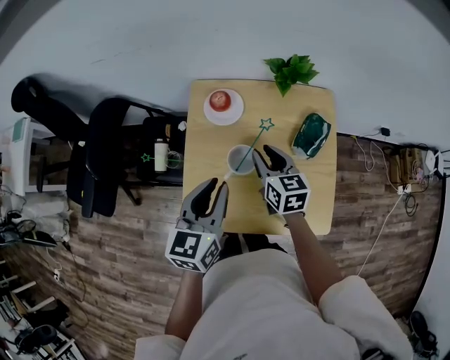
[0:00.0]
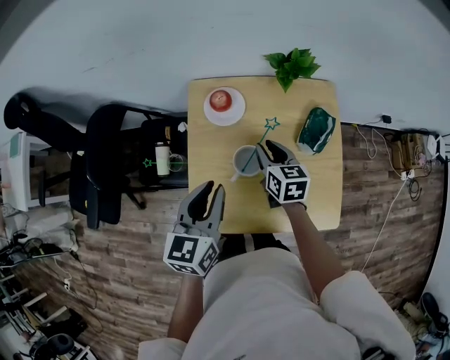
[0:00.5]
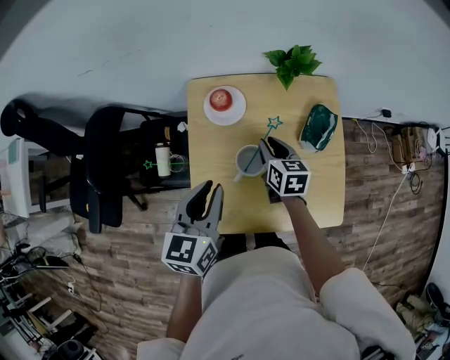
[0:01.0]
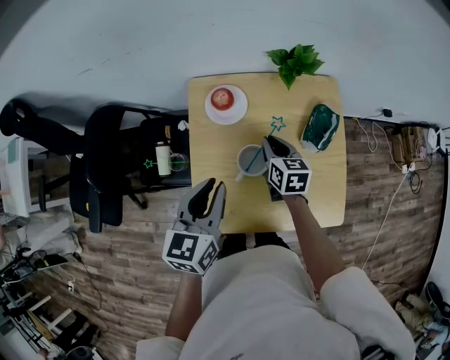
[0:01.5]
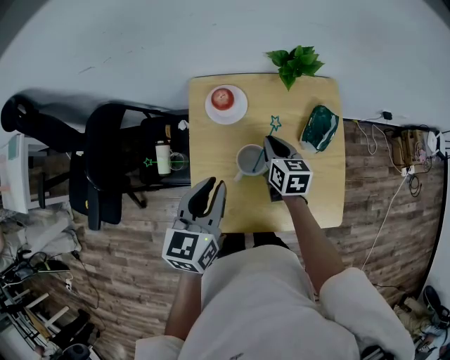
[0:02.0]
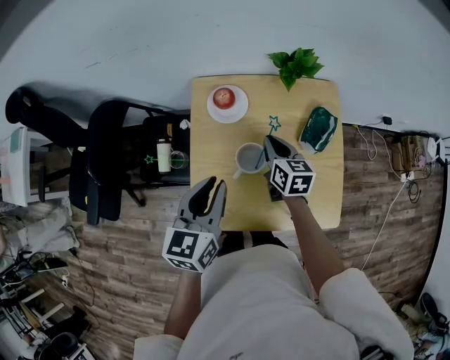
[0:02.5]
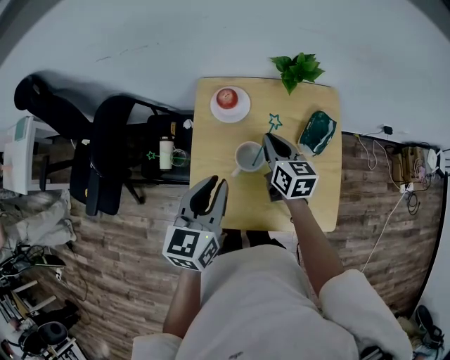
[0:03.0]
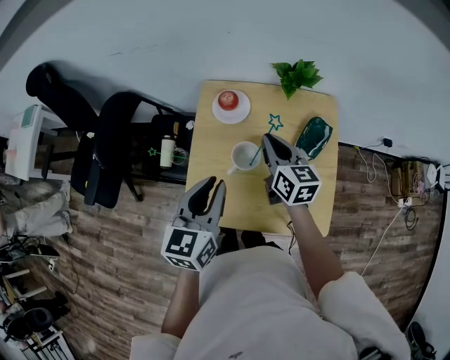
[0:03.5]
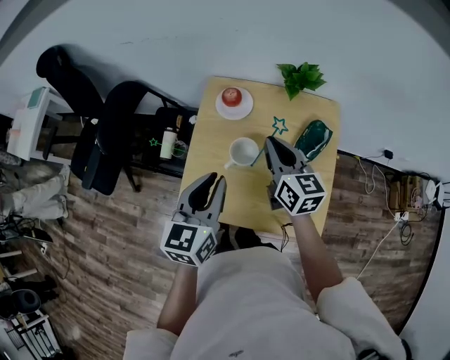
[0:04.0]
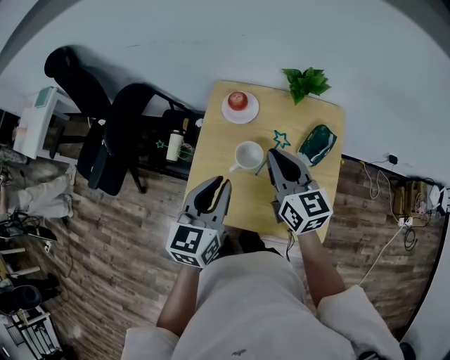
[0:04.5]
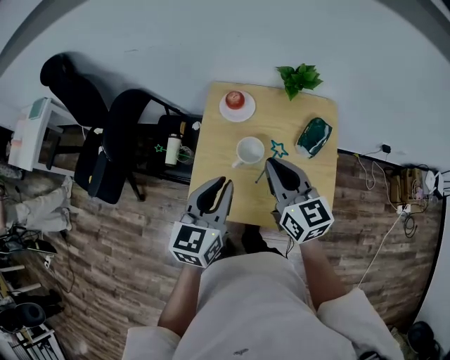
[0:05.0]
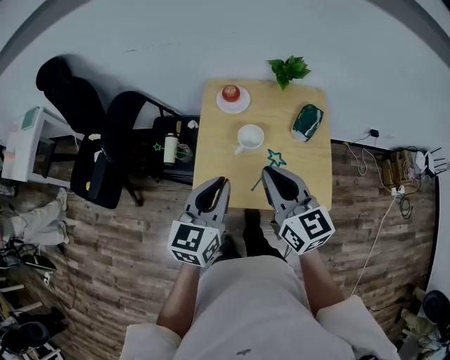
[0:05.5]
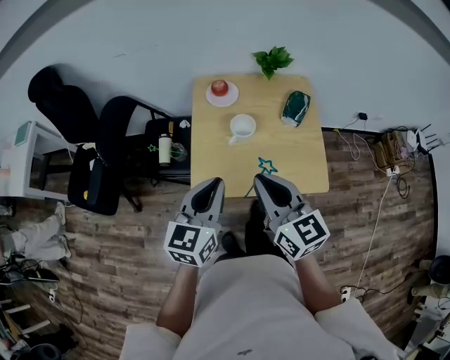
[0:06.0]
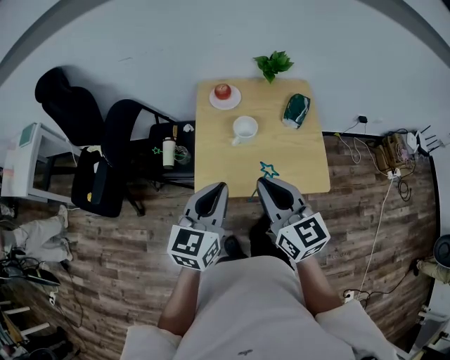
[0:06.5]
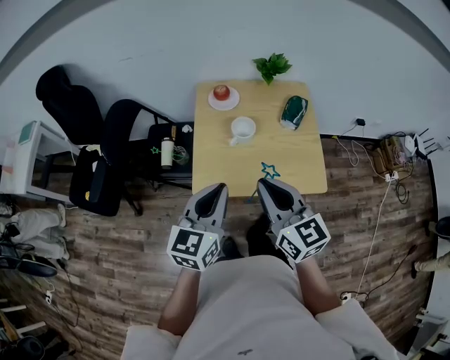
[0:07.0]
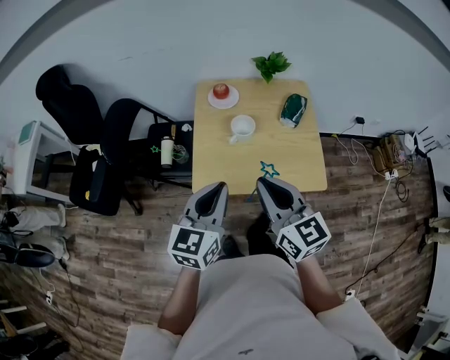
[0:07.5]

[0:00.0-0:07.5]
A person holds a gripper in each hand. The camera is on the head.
0:00.0 to 0:02.0: The left gripper changes place by some 5 cm; the right gripper goes some 5 cm downward, and closes up.
0:02.0 to 0:04.0: The right gripper moves upward and backward, approximately 15 cm, and changes its angle by roughly 30 degrees; the left gripper goes roughly 10 cm backward.
0:04.0 to 0:05.5: The right gripper moves backward, upward and to the left, approximately 20 cm. The left gripper travels backward and to the left by roughly 10 cm.
0:05.5 to 0:07.5: The two grippers go about 10 cm backward.

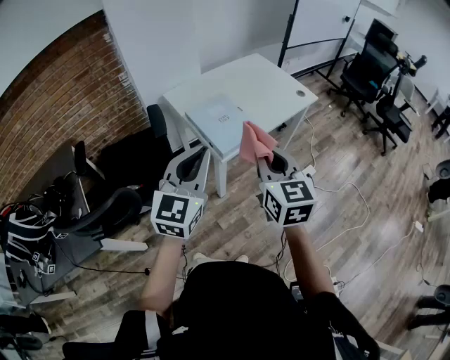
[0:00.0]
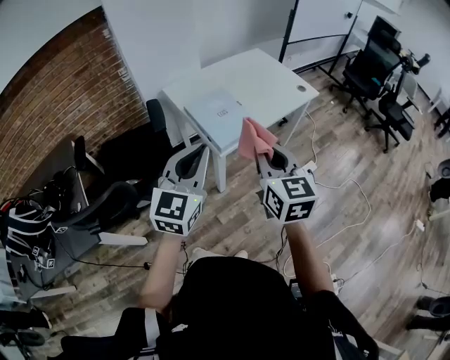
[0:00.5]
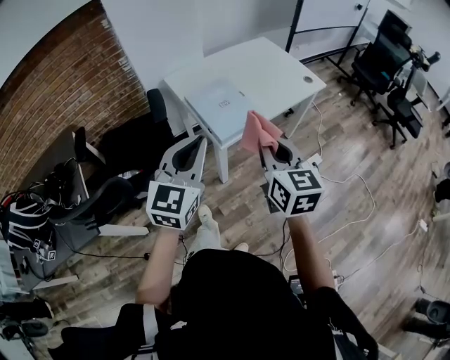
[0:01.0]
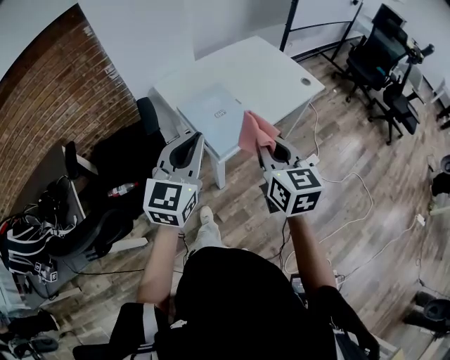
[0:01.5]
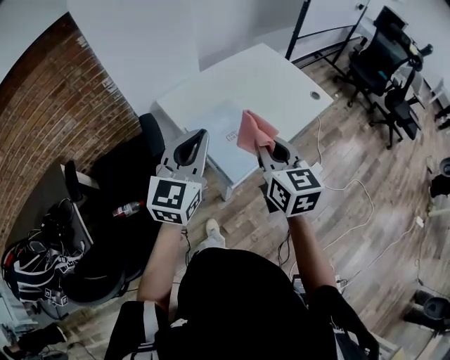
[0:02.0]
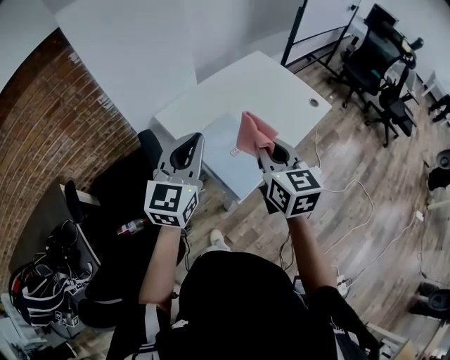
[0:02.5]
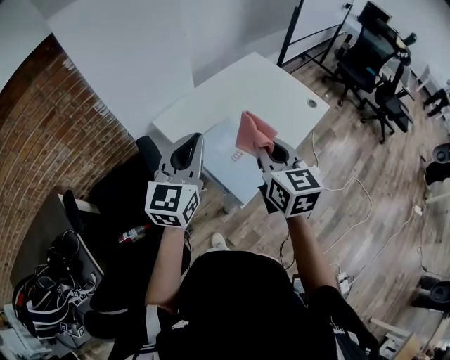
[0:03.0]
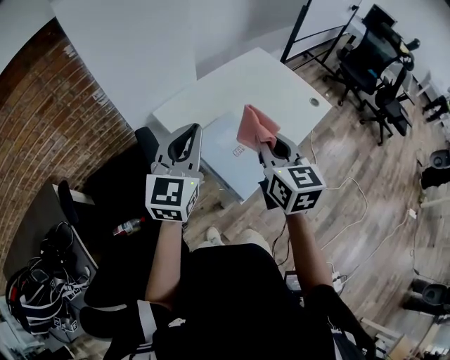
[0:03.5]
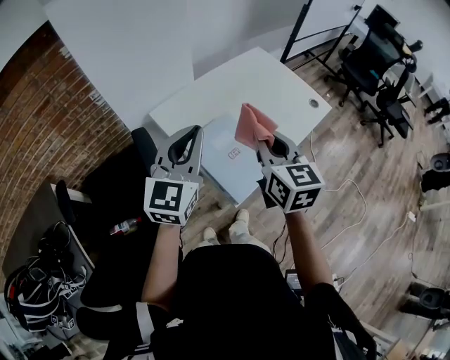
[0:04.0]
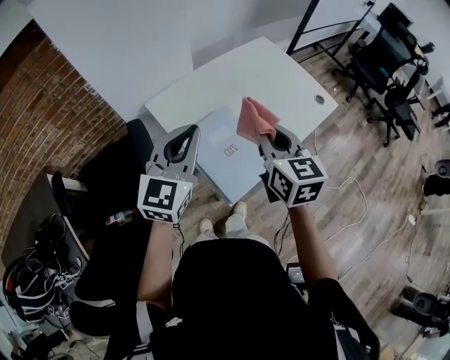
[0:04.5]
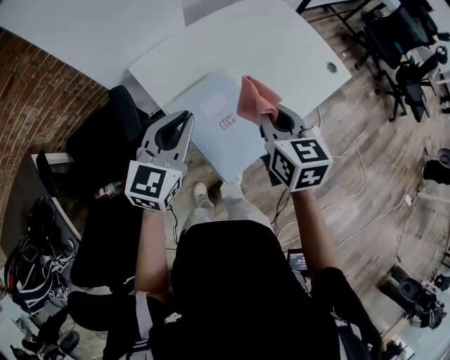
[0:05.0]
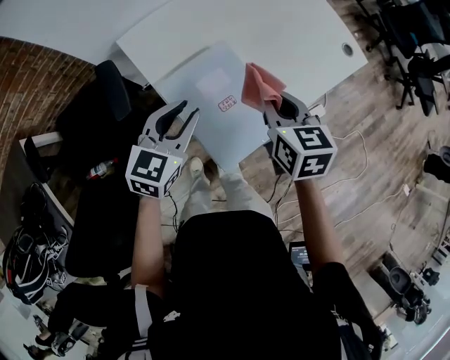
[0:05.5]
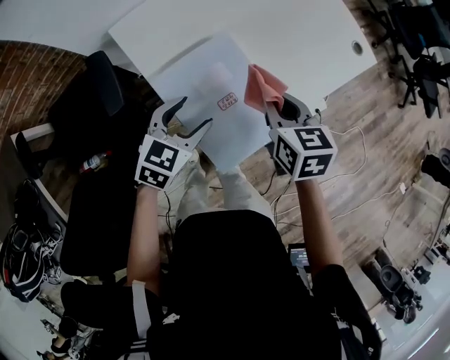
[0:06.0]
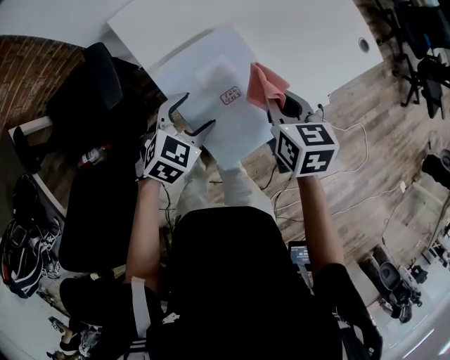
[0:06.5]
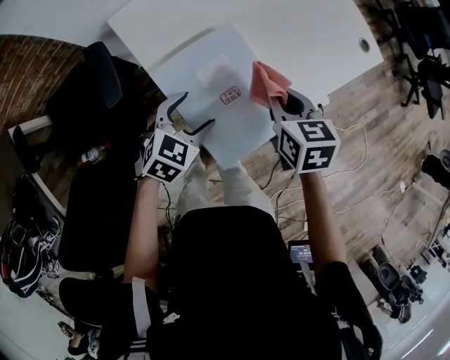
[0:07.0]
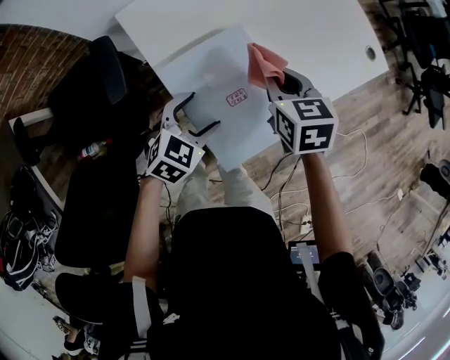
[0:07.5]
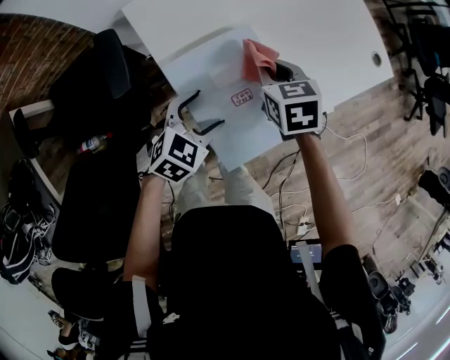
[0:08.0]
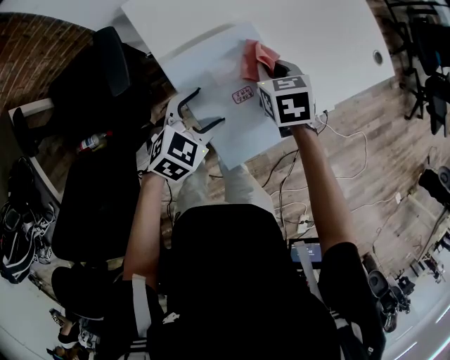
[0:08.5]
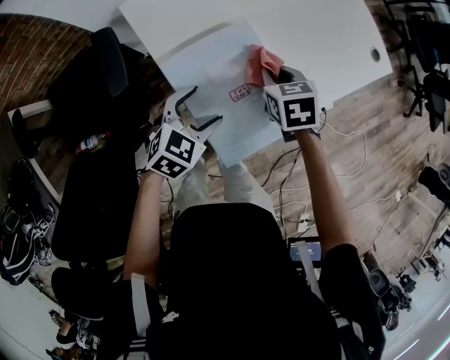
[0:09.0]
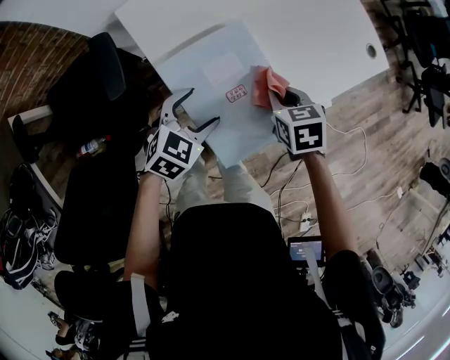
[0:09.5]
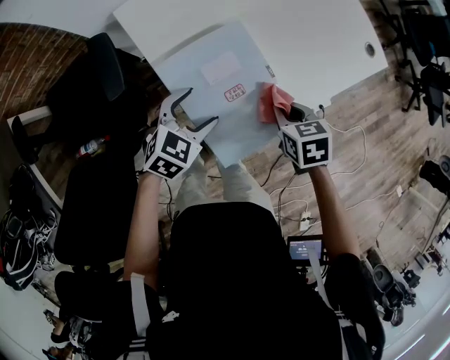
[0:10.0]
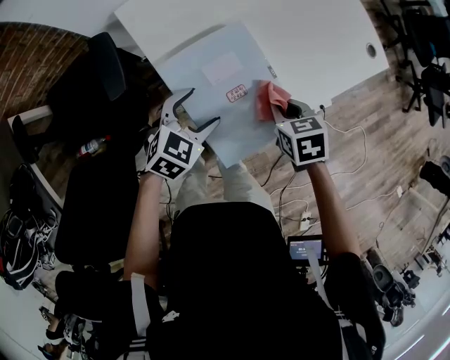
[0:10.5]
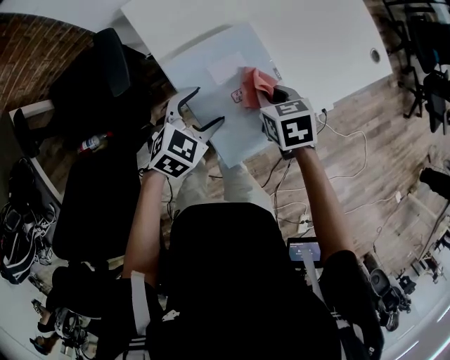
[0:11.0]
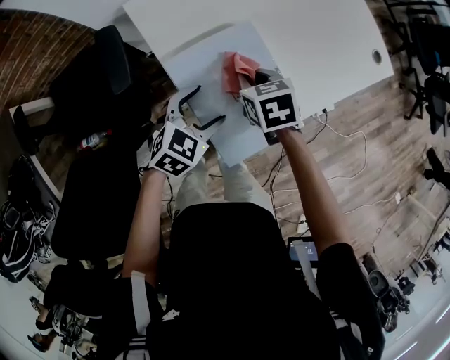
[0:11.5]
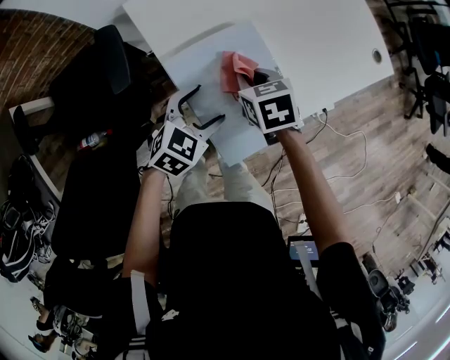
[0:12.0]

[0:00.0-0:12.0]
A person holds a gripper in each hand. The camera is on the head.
0:00.0 to 0:02.0: Both grippers travel together forward, roughly 20 cm.
0:02.0 to 0:04.0: Both grippers travel together forward, some 10 cm.
0:04.0 to 0:06.0: Both grippers travel together downward, roughly 25 cm. The left gripper angles its fingers downward, by about 40 degrees, and opens its fingers. Meanwhile the right gripper rotates some 30 degrees.
0:06.0 to 0:08.0: The left gripper moves downward, about 5 cm, while the right gripper moves downward, forward and to the left, some 10 cm.
0:08.0 to 0:10.0: The right gripper is displaced to the right and backward by roughly 15 cm.
0:10.0 to 0:12.0: The right gripper is displaced to the left and forward by about 15 cm.

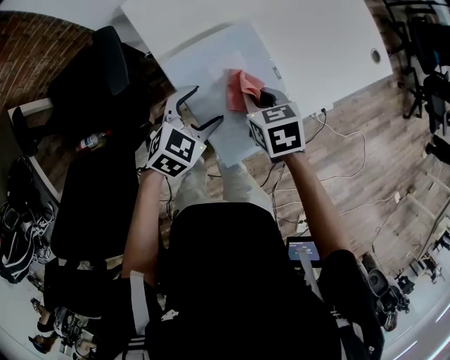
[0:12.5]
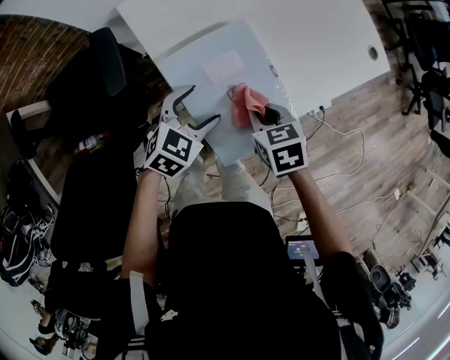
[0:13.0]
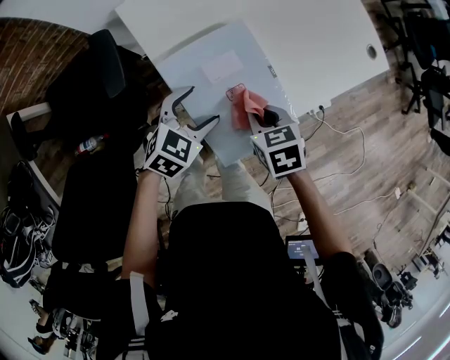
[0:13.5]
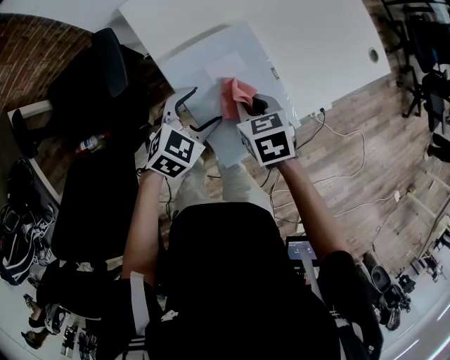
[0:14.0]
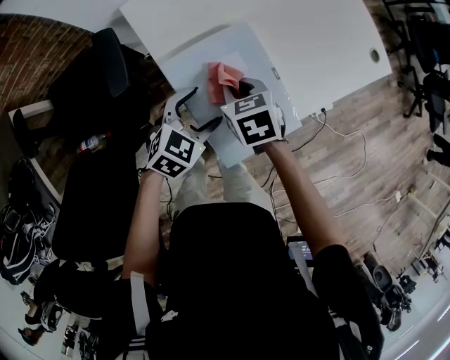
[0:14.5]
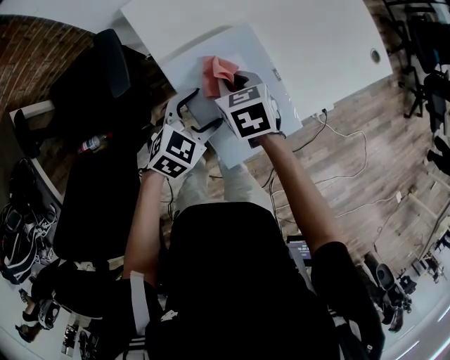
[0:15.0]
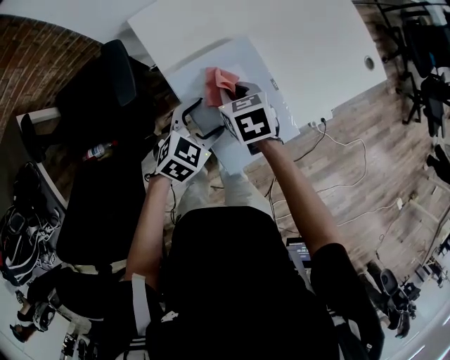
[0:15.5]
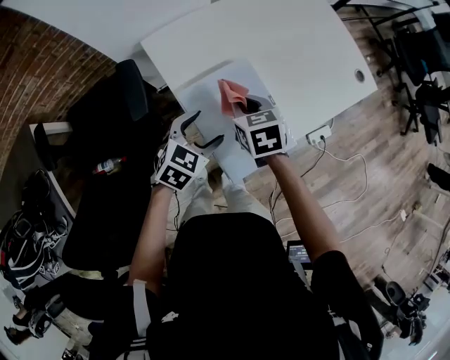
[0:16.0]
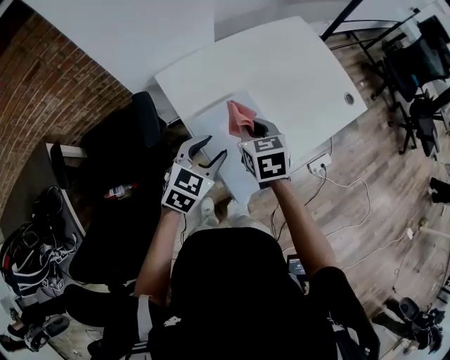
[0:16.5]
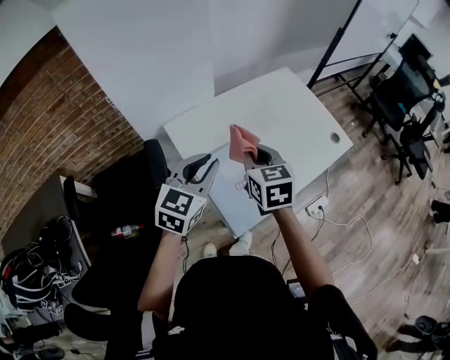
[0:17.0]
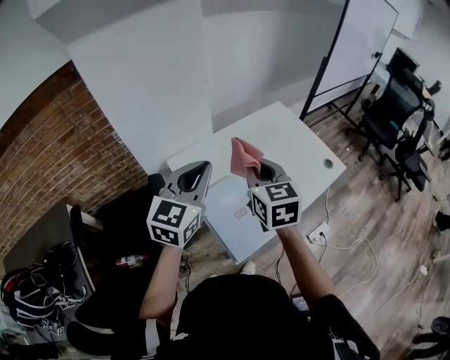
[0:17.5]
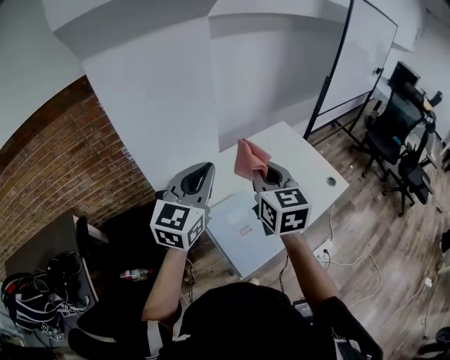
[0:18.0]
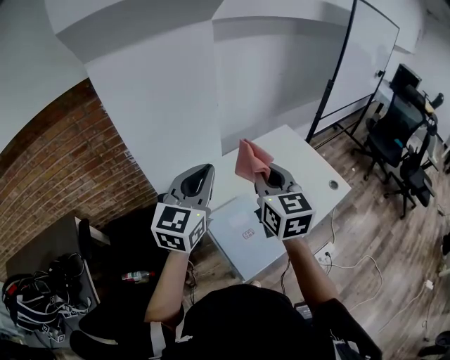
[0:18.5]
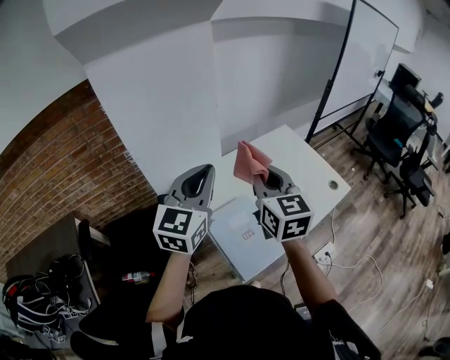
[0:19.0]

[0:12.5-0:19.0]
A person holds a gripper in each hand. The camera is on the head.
0:12.5 to 0:14.5: The right gripper moves to the left, some 5 cm.
0:14.5 to 0:17.0: The grippers both shift upward by roughly 25 cm. The left gripper swivels approximately 30 degrees, and closes its fingers, while the right gripper swivels roughly 30 degrees.
0:17.0 to 0:19.0: Both grippers move upward, approximately 15 cm. The right gripper swivels about 20 degrees.

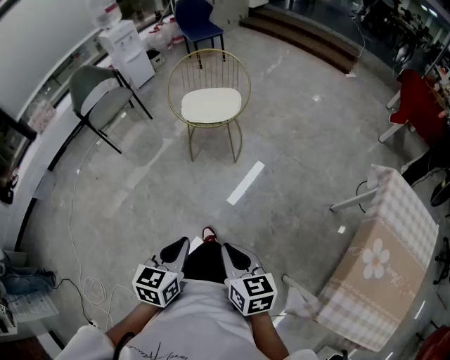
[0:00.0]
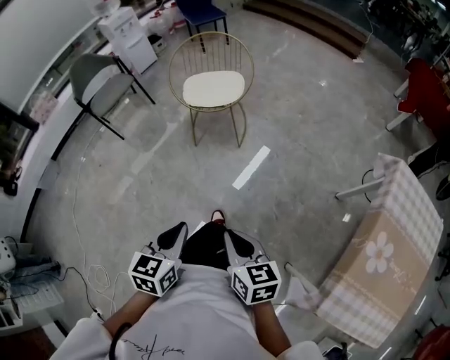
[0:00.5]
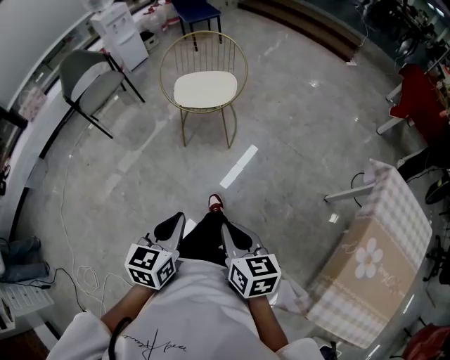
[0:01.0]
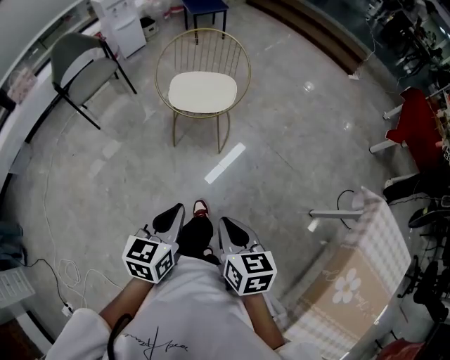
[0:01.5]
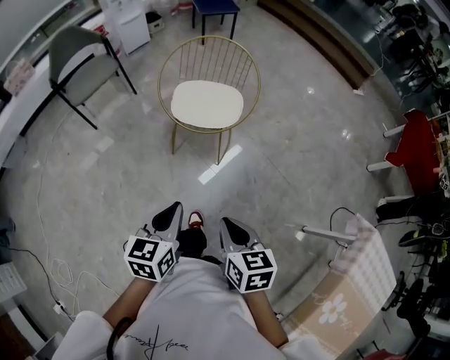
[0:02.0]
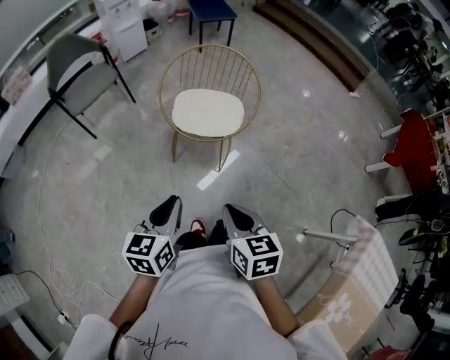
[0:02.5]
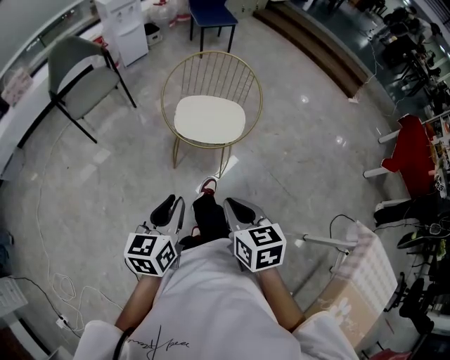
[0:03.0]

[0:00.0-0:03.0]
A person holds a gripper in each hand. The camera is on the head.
0:00.0 to 0:01.5: The grippers both shift forward by approximately 20 cm.
0:01.5 to 0:03.0: The left gripper shifts roughly 20 cm forward and to the left. Meanwhile the right gripper goes roughly 20 cm forward.
